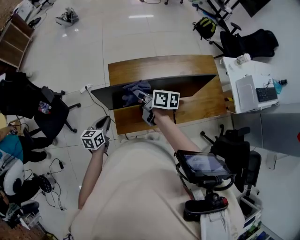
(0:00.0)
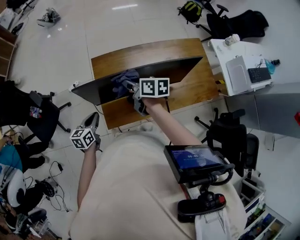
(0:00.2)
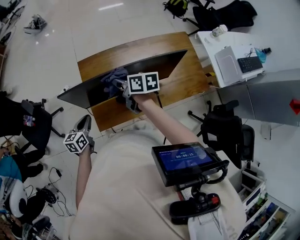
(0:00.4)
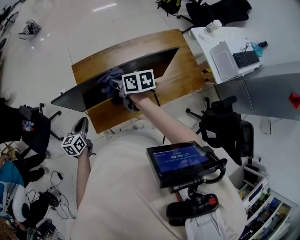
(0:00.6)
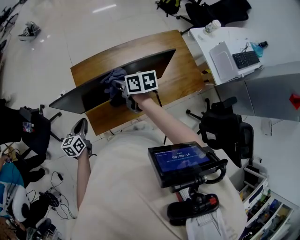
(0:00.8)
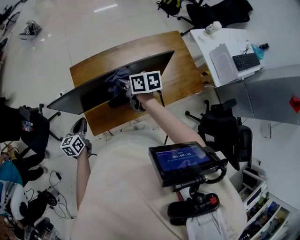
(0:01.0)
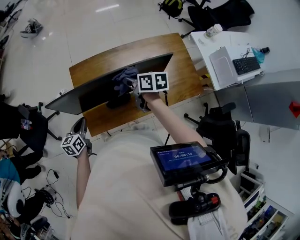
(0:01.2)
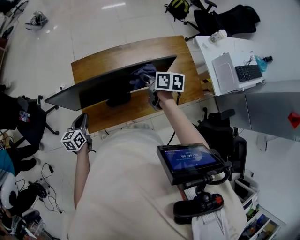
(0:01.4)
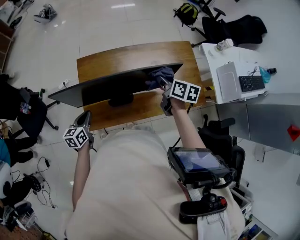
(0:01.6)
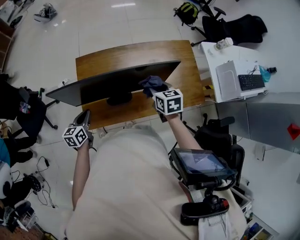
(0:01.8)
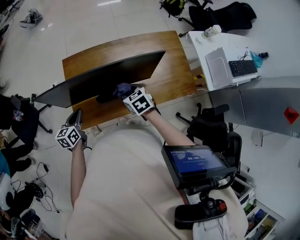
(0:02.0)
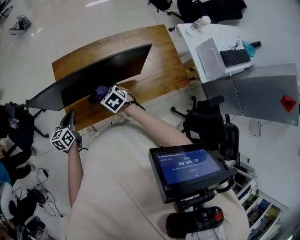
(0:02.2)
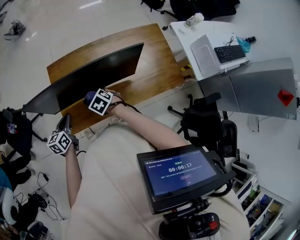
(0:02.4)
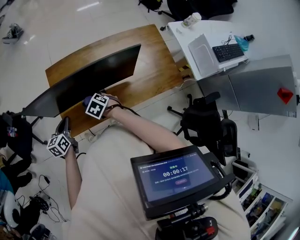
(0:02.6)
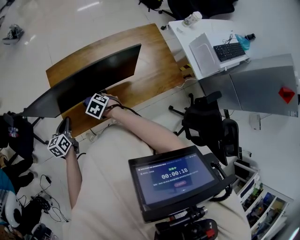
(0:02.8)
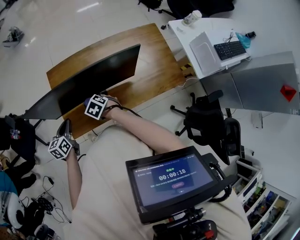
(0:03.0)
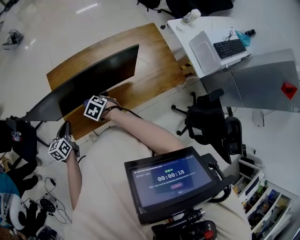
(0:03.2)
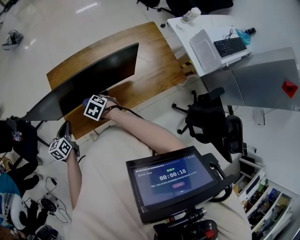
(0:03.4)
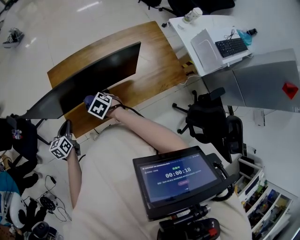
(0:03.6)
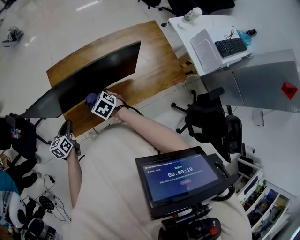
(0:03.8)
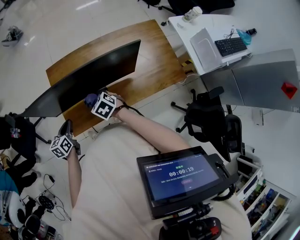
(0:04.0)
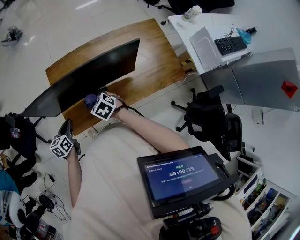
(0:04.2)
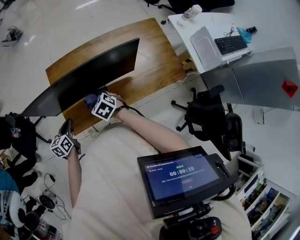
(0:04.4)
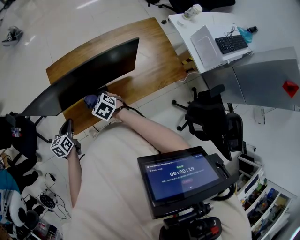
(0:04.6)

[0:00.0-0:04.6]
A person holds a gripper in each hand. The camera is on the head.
0:00.0 to 0:01.6: The right gripper travels to the right by some 30 cm, and rotates about 20 degrees. Meanwhile the left gripper goes about 10 cm to the right.
0:01.6 to 0:03.0: The right gripper travels to the left and downward by about 30 cm, and twists some 50 degrees counterclockwise, seen from behind.
0:03.0 to 0:04.6: The grippers move only a little.

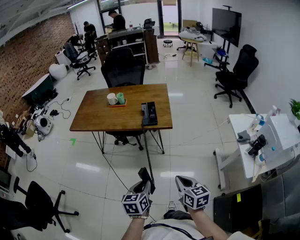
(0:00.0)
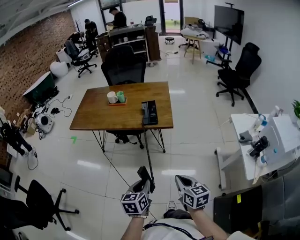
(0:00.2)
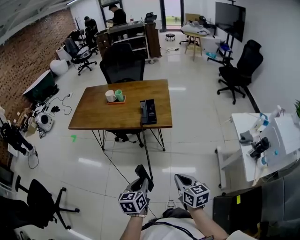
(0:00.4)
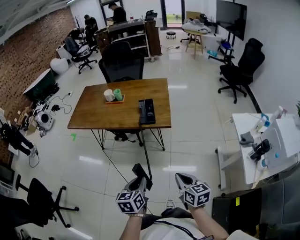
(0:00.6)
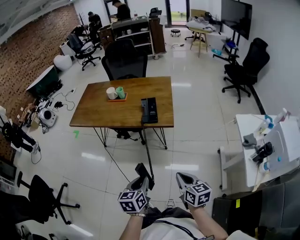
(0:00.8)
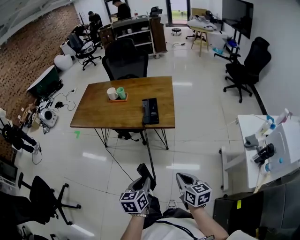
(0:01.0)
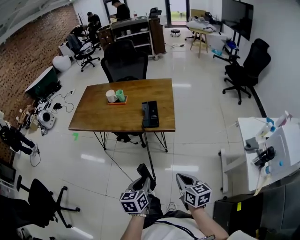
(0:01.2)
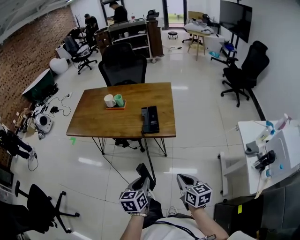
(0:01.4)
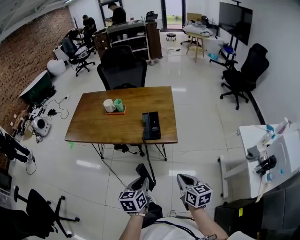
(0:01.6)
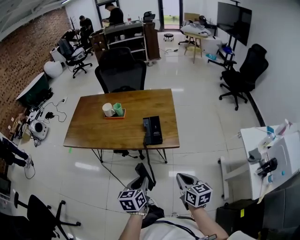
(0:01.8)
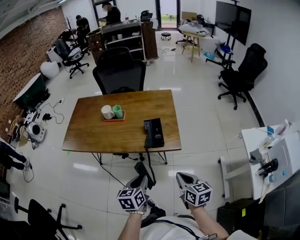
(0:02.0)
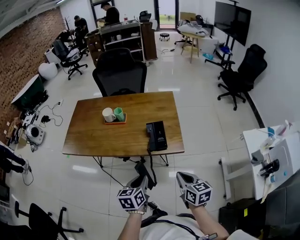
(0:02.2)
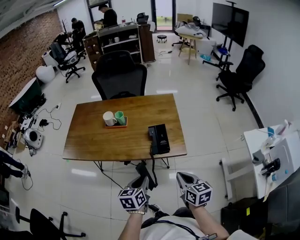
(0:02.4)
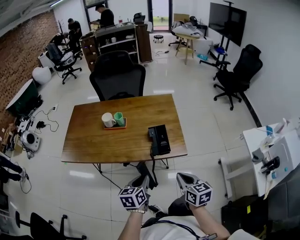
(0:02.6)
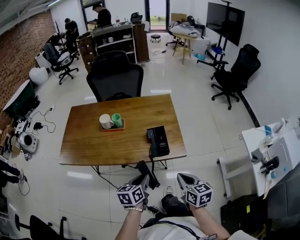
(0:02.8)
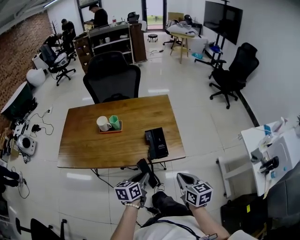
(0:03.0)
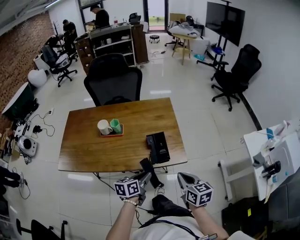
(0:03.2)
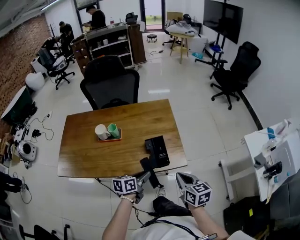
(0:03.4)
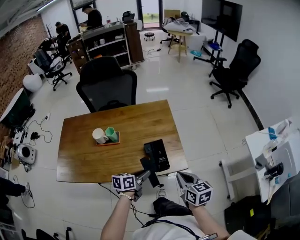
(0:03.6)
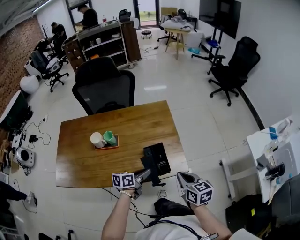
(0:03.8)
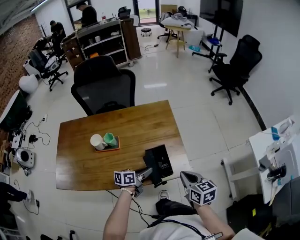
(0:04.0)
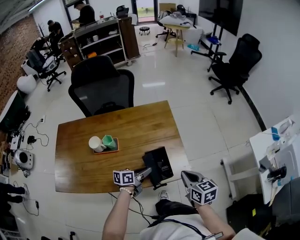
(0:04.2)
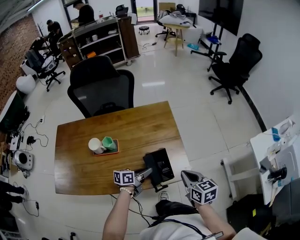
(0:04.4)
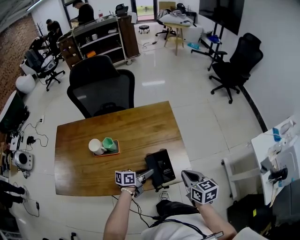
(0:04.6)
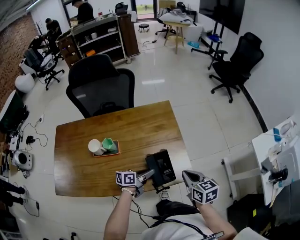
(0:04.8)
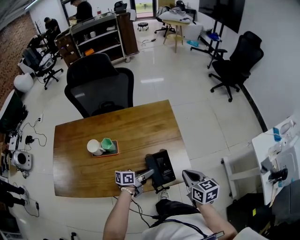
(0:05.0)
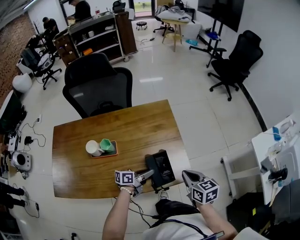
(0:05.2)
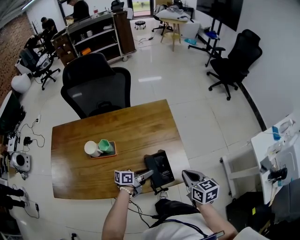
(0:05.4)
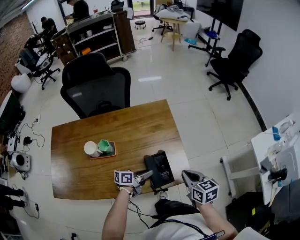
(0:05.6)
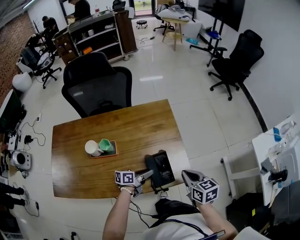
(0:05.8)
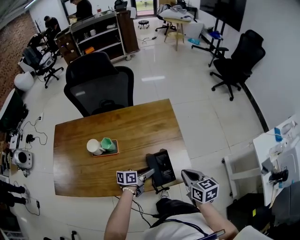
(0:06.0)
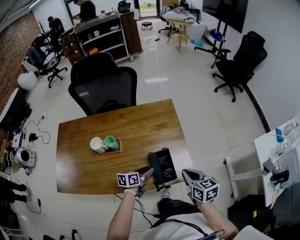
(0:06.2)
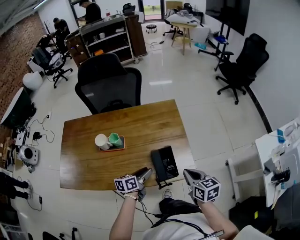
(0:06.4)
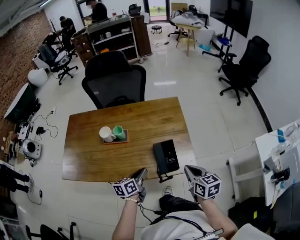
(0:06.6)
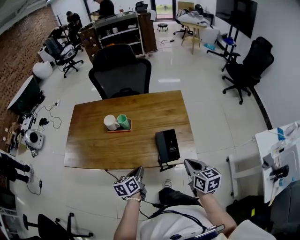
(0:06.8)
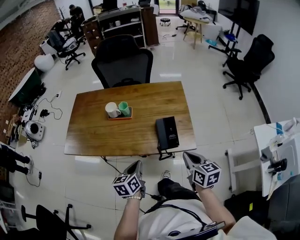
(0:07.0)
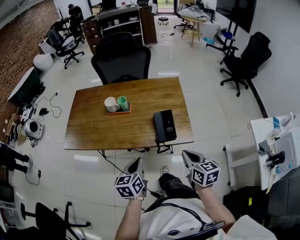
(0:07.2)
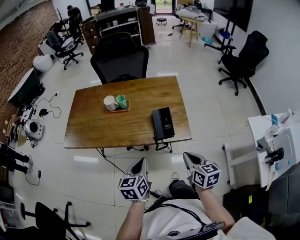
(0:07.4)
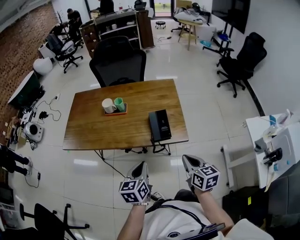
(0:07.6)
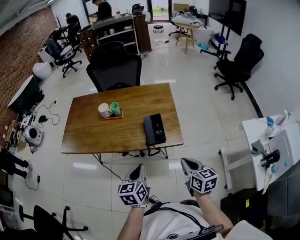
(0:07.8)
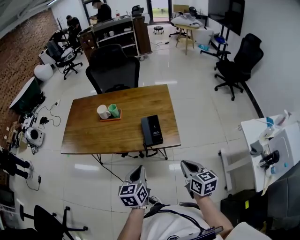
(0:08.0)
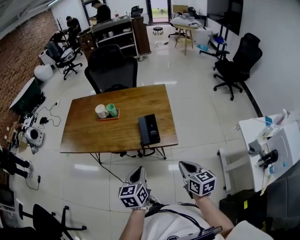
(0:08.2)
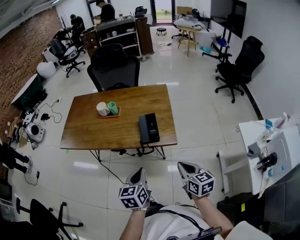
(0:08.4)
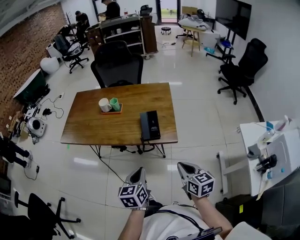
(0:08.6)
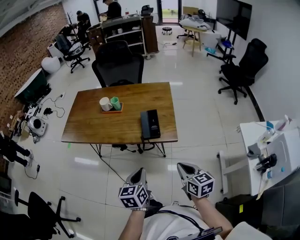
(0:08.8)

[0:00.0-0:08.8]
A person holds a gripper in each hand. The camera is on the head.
0:00.0 to 0:01.4: Both grippers travel together forward, approximately 10 cm.
0:01.4 to 0:03.0: The right gripper shifts roughly 20 cm forward and to the left. Meanwhile the left gripper moves forward, roughly 20 cm, and changes its angle by some 20 degrees.
0:03.0 to 0:04.4: The grippers both shift forward by about 20 cm. The left gripper changes its angle by about 30 degrees.
0:04.4 to 0:05.8: The grippers stay close to where they were, moving slightly.
0:05.8 to 0:07.4: The left gripper moves about 30 cm, changes its angle by roughly 60 degrees, and closes up. Meanwhile the right gripper shifts by roughly 20 cm.
0:07.4 to 0:08.8: Both grippers move backward and to the right, approximately 10 cm.

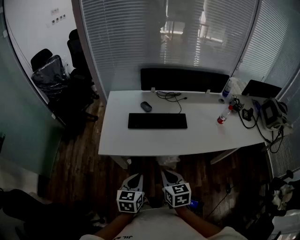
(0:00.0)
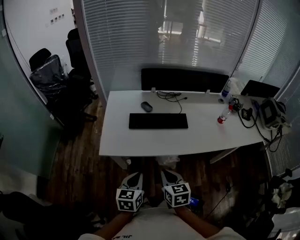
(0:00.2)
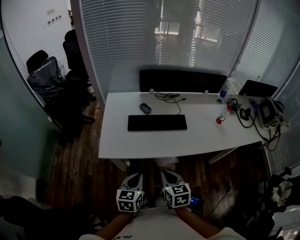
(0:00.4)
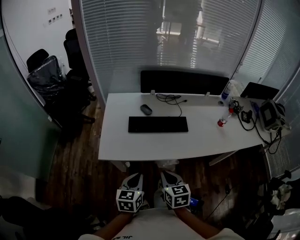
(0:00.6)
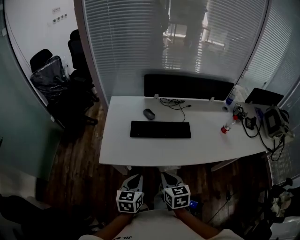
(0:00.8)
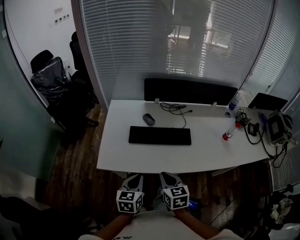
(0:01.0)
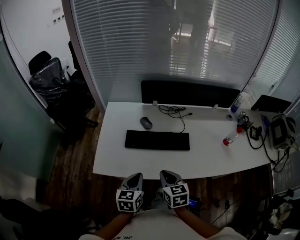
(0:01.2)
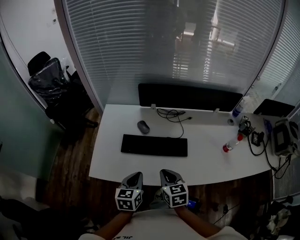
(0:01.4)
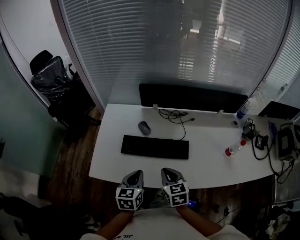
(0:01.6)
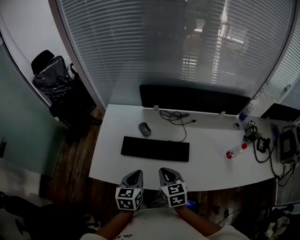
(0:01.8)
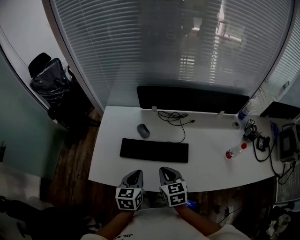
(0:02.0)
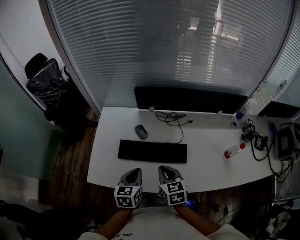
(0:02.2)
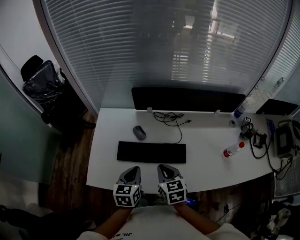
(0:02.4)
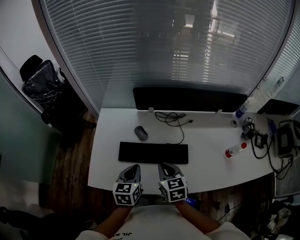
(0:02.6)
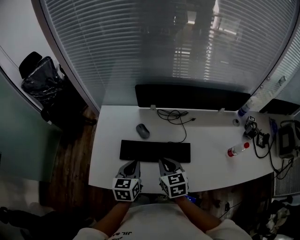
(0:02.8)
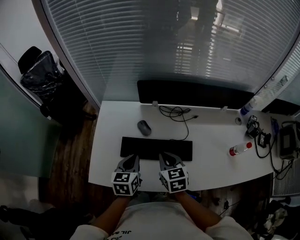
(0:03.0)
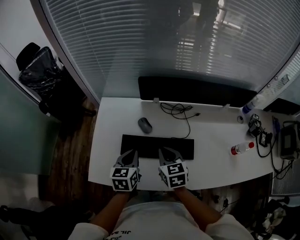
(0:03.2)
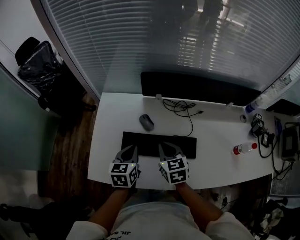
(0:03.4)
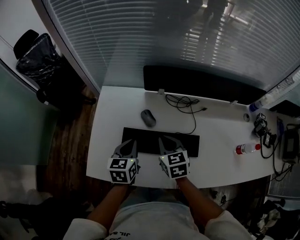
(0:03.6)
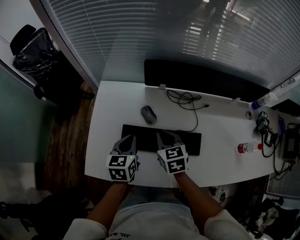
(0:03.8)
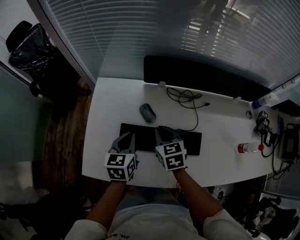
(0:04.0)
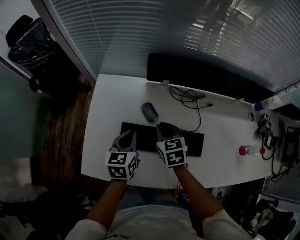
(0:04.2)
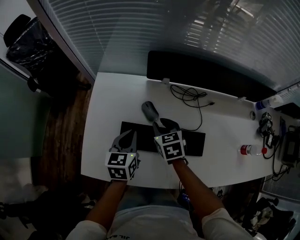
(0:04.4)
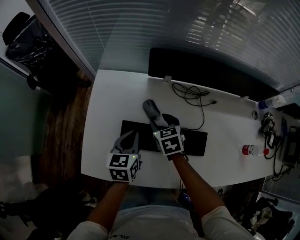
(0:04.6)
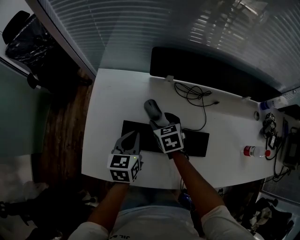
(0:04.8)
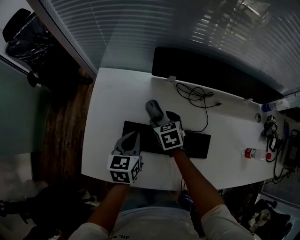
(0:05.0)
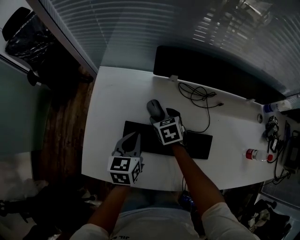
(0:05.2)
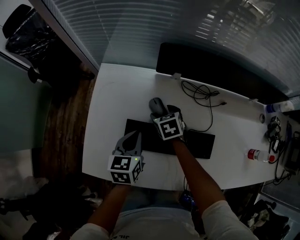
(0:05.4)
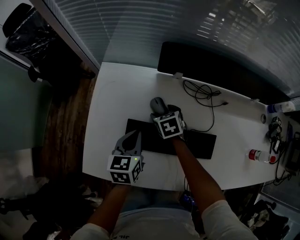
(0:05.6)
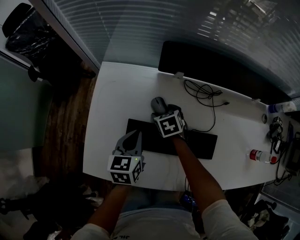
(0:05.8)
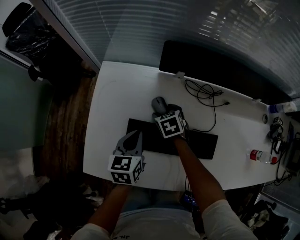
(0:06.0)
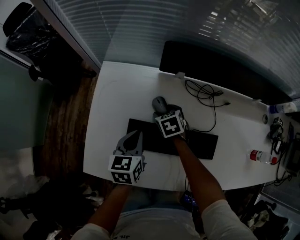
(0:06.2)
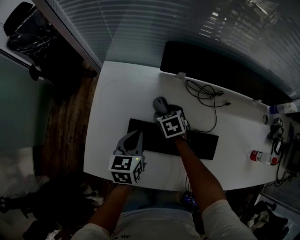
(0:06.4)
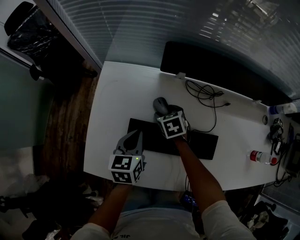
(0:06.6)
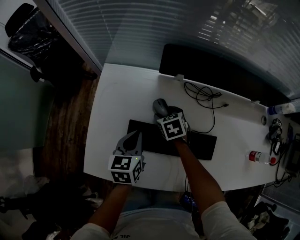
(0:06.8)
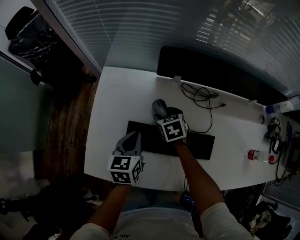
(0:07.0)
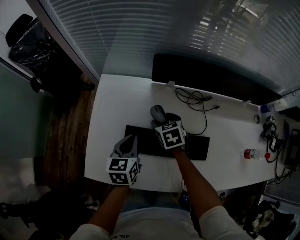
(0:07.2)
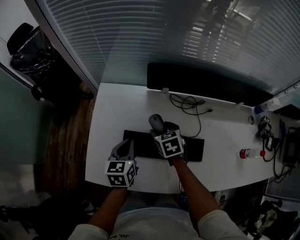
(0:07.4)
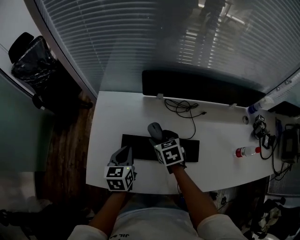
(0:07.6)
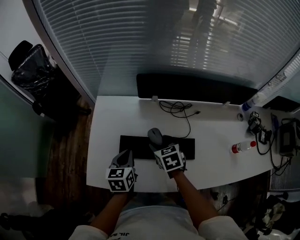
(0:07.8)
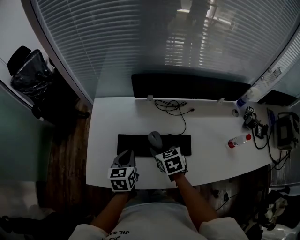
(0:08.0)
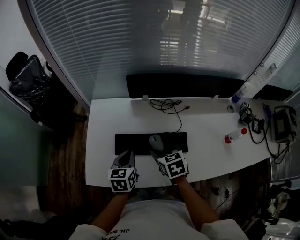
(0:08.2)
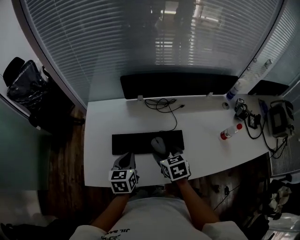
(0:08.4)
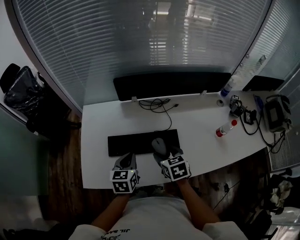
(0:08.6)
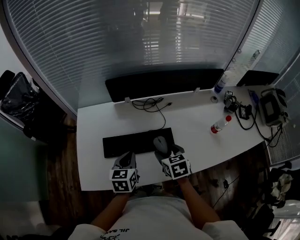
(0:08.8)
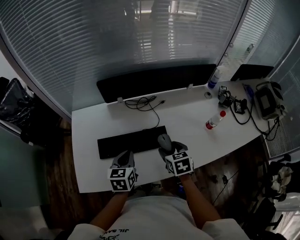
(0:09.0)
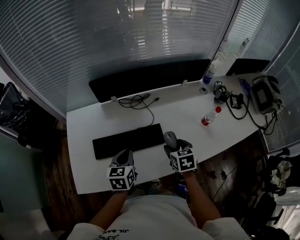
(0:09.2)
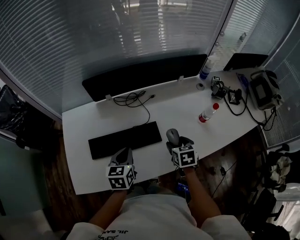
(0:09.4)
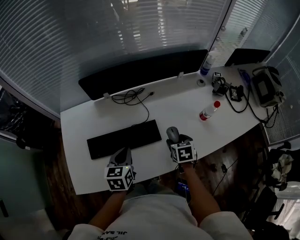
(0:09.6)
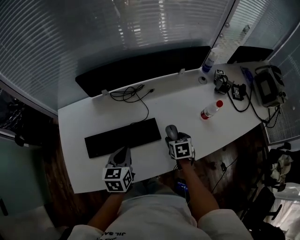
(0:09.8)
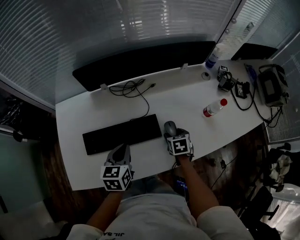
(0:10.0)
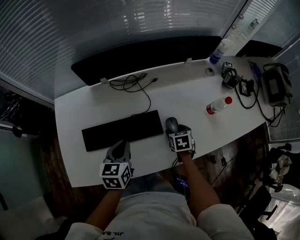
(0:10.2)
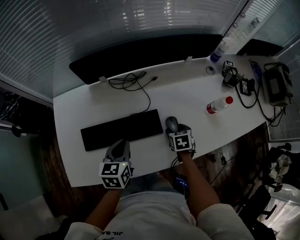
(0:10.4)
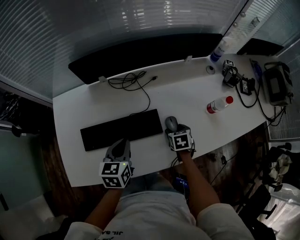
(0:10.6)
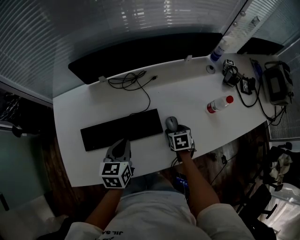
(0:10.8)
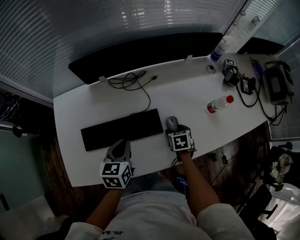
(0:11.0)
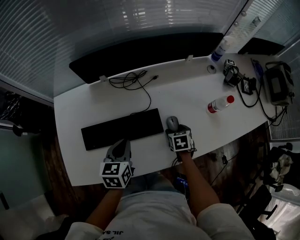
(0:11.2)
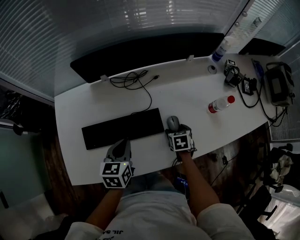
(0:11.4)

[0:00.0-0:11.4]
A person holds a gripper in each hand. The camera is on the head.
0:00.0 to 0:01.4: Both grippers move forward, about 20 cm.
0:01.4 to 0:02.8: Both grippers move forward, approximately 15 cm.
0:02.8 to 0:04.2: The grippers both shift forward and downward by about 15 cm.
0:04.2 to 0:05.6: The right gripper is displaced downward and forward by roughly 15 cm, and opens its fingers.
0:05.6 to 0:07.2: The right gripper moves upward, approximately 5 cm.
0:07.2 to 0:08.6: The right gripper heads backward, to the right and upward, covering approximately 30 cm, while the left gripper travels backward, to the right and upward by roughly 15 cm.
0:08.6 to 0:10.0: The right gripper shifts roughly 25 cm to the right and downward, and rotates about 20 degrees. Meanwhile the left gripper travels to the right by approximately 10 cm.
0:10.0 to 0:11.4: There are only small adjustments of the grippers.
